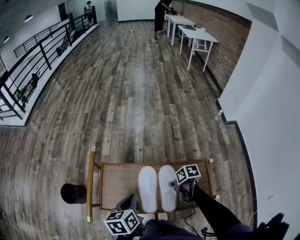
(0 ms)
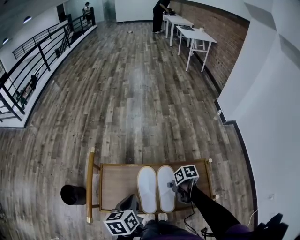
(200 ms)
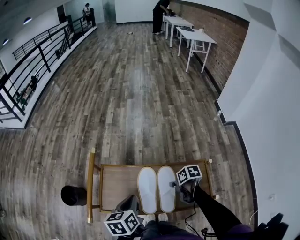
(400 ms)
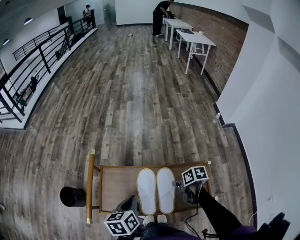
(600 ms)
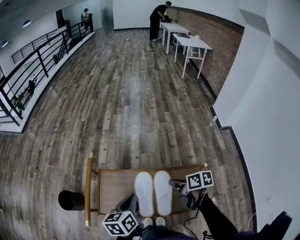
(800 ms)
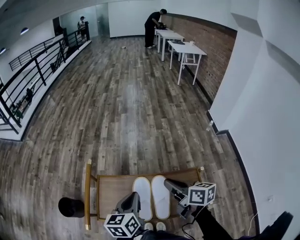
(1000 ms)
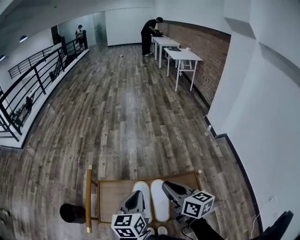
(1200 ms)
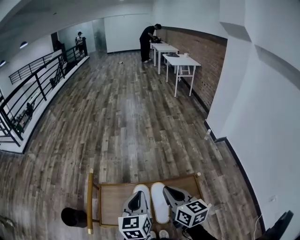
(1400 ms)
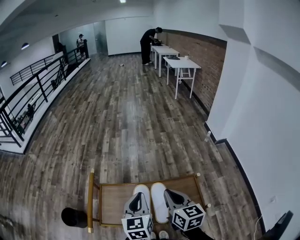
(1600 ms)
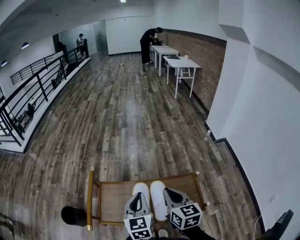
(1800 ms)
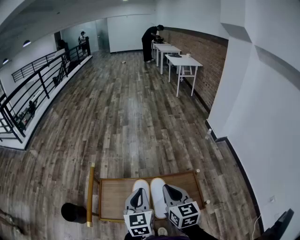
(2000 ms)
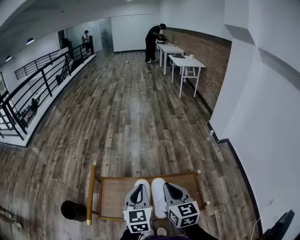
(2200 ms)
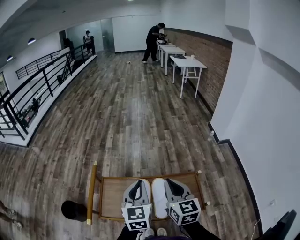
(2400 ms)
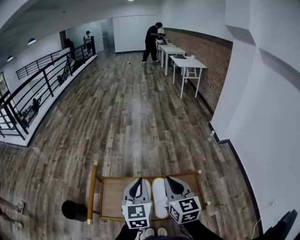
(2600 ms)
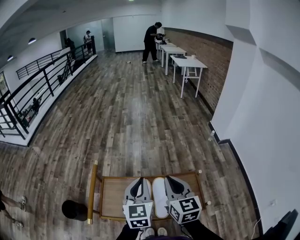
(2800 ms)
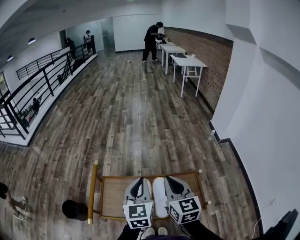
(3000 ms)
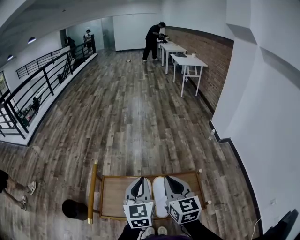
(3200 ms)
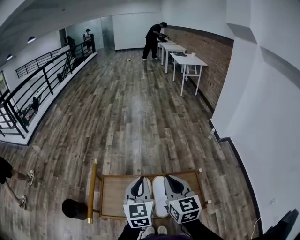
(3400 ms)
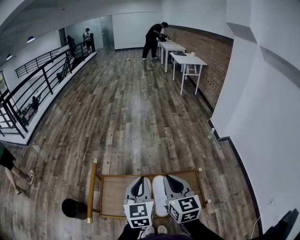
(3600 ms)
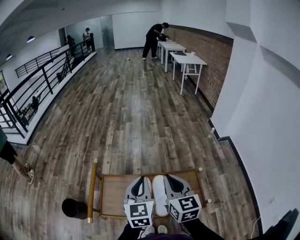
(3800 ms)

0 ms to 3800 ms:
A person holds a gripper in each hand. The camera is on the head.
0 ms to 1200 ms: The right gripper moves upward, approximately 25 cm, and tips its fingers upward by roughly 50 degrees, while the left gripper travels upward and to the right by about 10 cm, and changes its angle by some 30 degrees.
1200 ms to 2600 ms: The left gripper moves upward, approximately 5 cm, and turns by some 20 degrees. Meanwhile the right gripper rotates approximately 30 degrees.
2600 ms to 3800 ms: Both grippers stay about where they are.

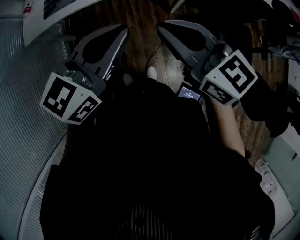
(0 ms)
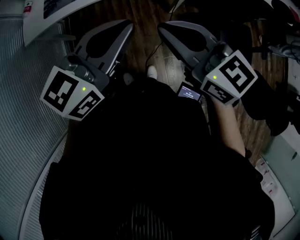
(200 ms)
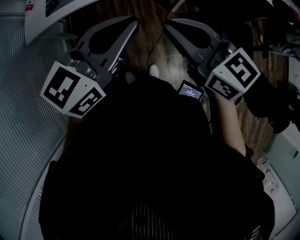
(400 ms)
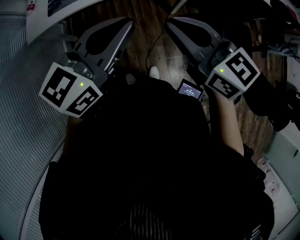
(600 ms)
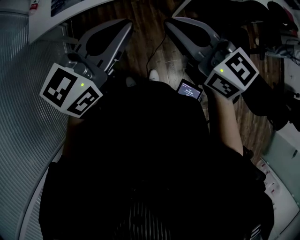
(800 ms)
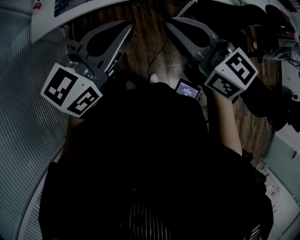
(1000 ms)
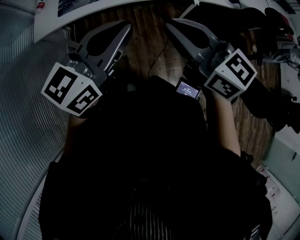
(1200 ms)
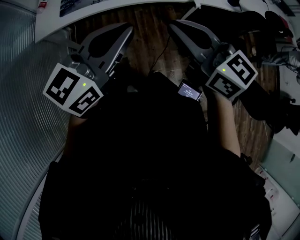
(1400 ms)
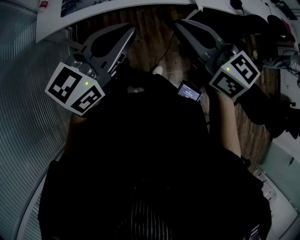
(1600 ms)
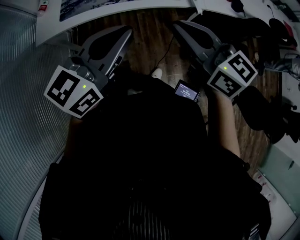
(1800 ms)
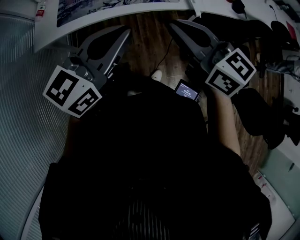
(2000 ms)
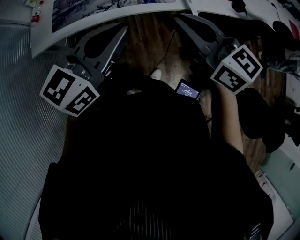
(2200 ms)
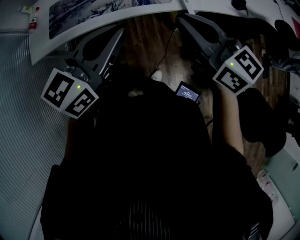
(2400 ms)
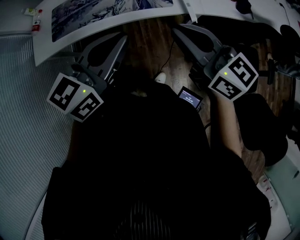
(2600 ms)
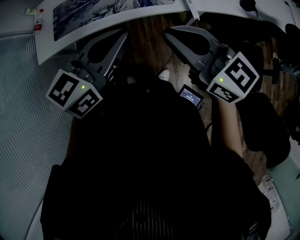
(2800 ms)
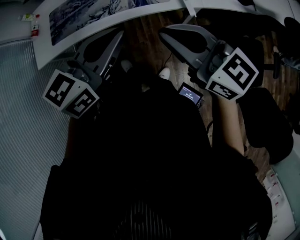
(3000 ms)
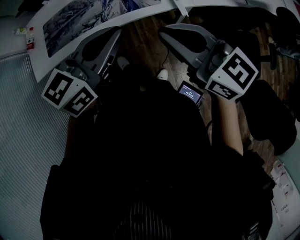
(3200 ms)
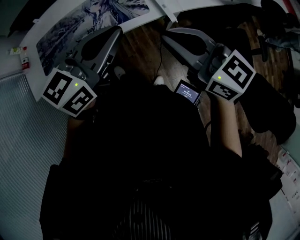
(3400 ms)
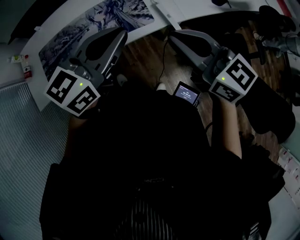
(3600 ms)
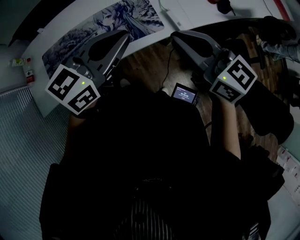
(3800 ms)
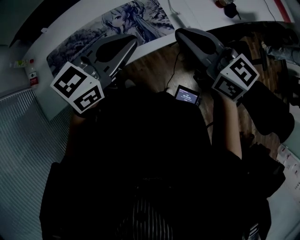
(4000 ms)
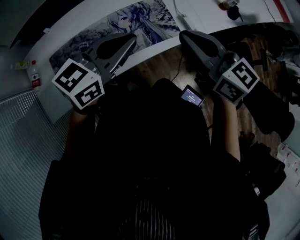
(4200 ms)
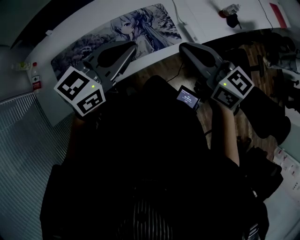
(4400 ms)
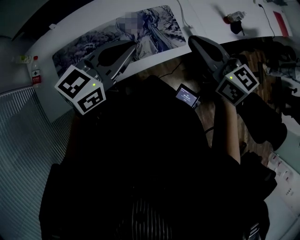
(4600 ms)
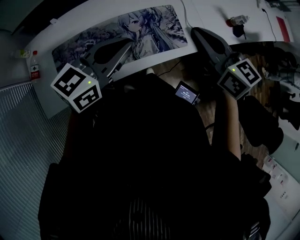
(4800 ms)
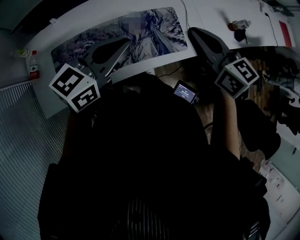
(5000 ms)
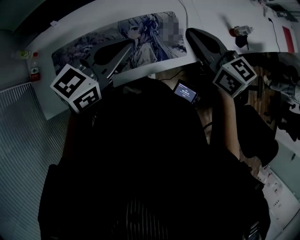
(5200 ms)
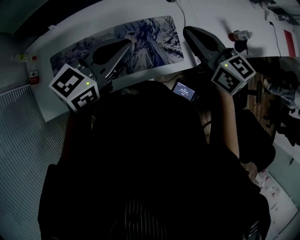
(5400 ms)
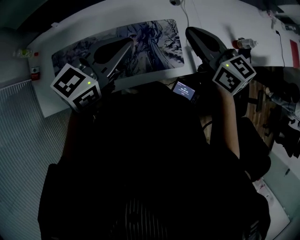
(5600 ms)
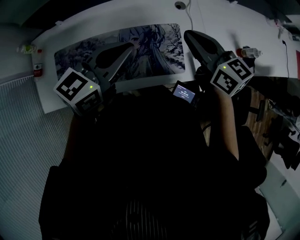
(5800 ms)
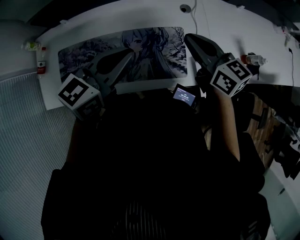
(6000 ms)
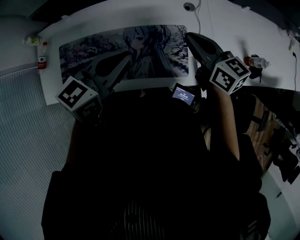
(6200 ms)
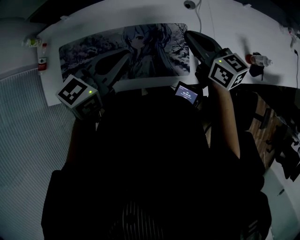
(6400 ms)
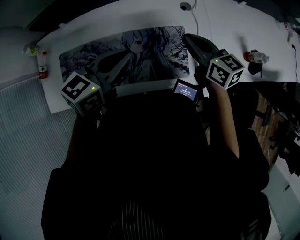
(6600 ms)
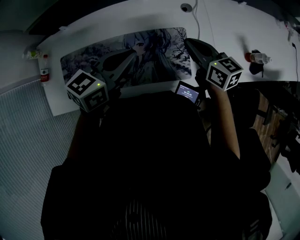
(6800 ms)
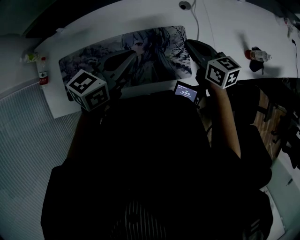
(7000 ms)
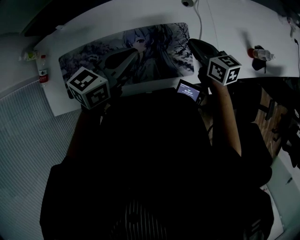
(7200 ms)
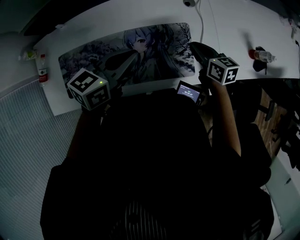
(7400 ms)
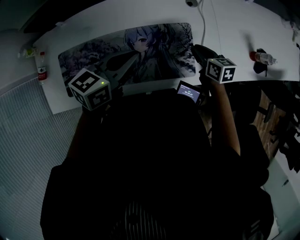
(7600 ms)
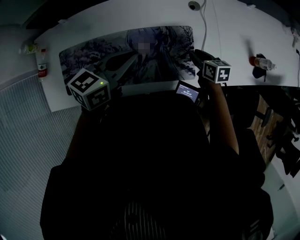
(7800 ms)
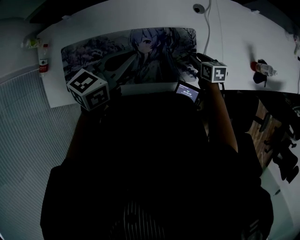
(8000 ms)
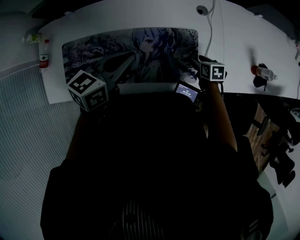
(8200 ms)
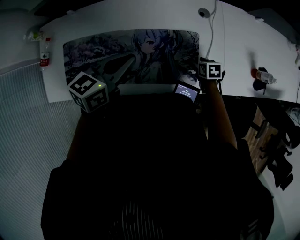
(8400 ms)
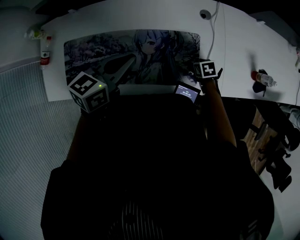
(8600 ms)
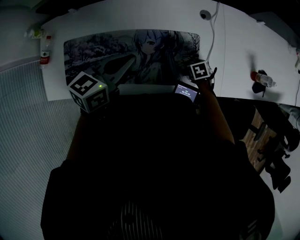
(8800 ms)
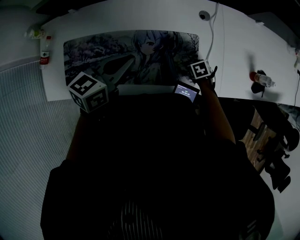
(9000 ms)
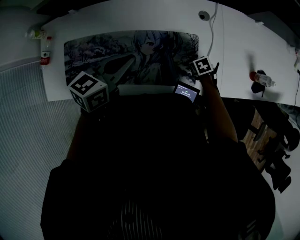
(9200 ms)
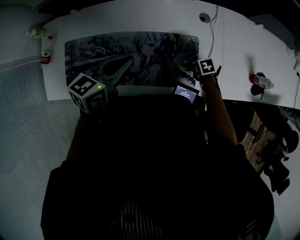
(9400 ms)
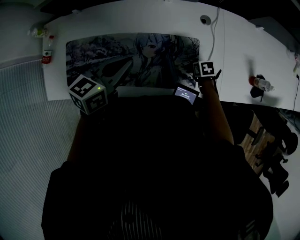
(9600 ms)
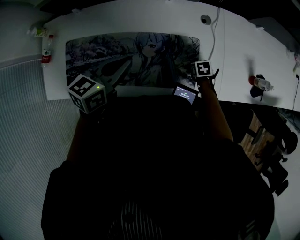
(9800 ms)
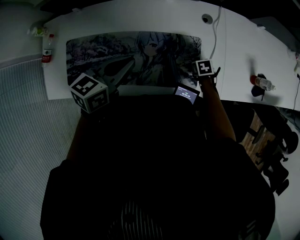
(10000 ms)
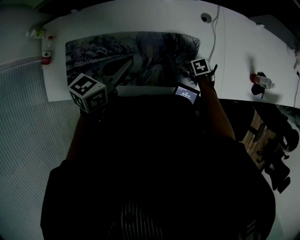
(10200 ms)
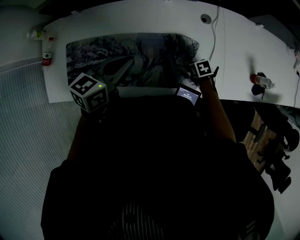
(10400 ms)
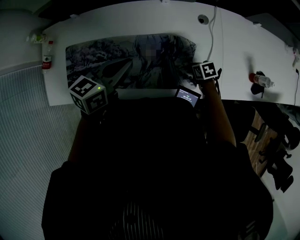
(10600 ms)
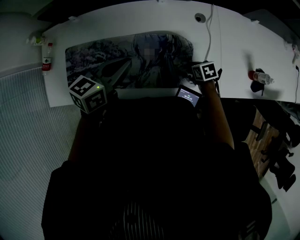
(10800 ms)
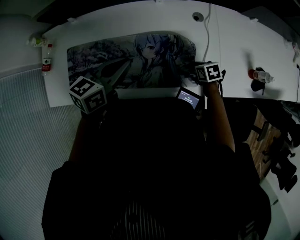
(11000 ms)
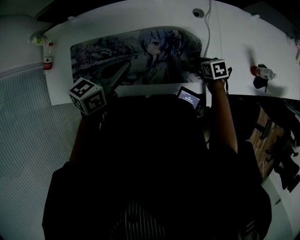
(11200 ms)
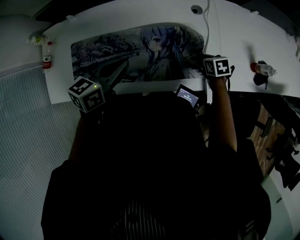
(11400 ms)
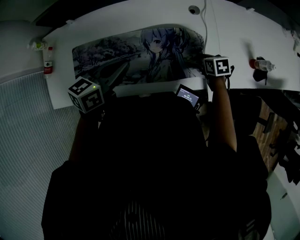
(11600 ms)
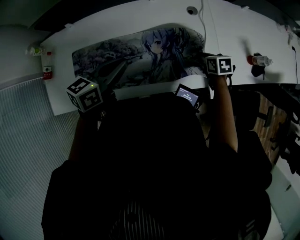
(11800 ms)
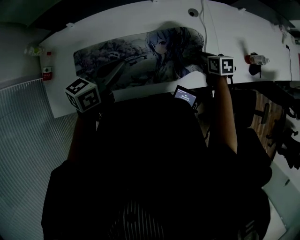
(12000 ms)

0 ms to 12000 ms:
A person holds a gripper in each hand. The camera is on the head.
0 ms to 1600 ms: Both grippers travel together to the left, some 10 cm.
1600 ms to 3000 ms: The right gripper goes roughly 20 cm to the right and forward. Meanwhile the left gripper moves forward and to the right, approximately 25 cm.
3000 ms to 4400 ms: The right gripper heads forward and to the left, covering roughly 20 cm, and rotates approximately 30 degrees. Meanwhile the left gripper travels to the left and forward by roughly 25 cm, and changes its angle by some 20 degrees.
4400 ms to 6000 ms: The left gripper moves forward, some 15 cm, and turns by approximately 20 degrees, while the right gripper goes roughly 25 cm forward.
6000 ms to 7600 ms: The right gripper heads downward, covering about 20 cm, and swivels approximately 30 degrees. The left gripper goes roughly 10 cm downward.
7600 ms to 9000 ms: The right gripper heads downward, covering approximately 15 cm, tilts its fingers roughly 40 degrees downward, and opens its fingers.
9000 ms to 10400 ms: The right gripper closes.
10400 ms to 12000 ms: The left gripper moves to the left, some 5 cm. The right gripper is displaced upward by roughly 15 cm, and turns by approximately 30 degrees.

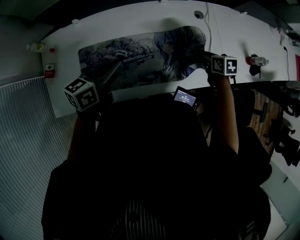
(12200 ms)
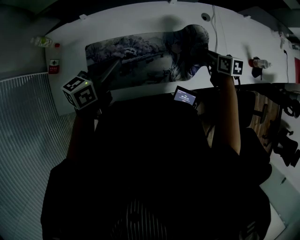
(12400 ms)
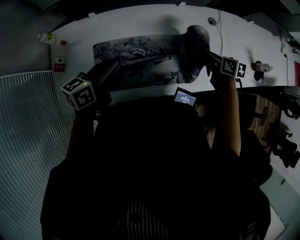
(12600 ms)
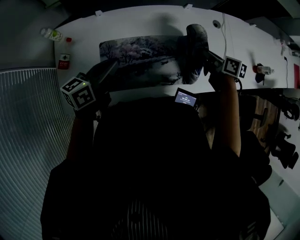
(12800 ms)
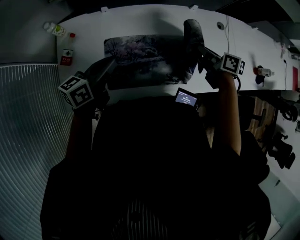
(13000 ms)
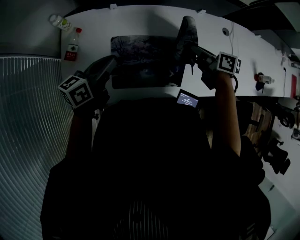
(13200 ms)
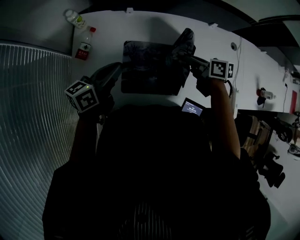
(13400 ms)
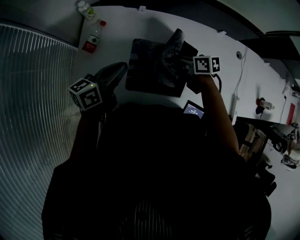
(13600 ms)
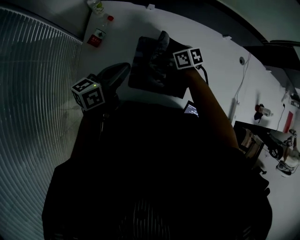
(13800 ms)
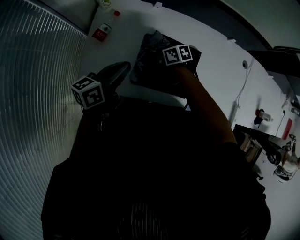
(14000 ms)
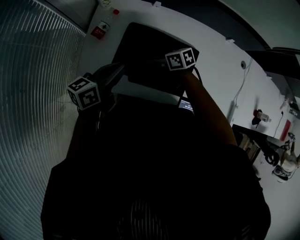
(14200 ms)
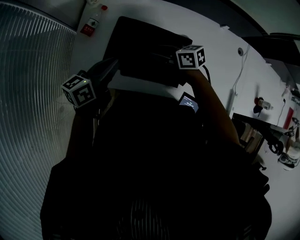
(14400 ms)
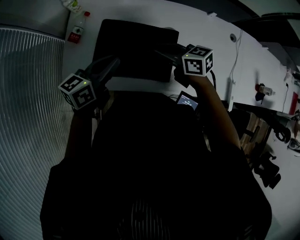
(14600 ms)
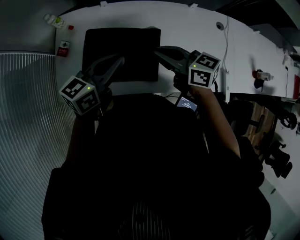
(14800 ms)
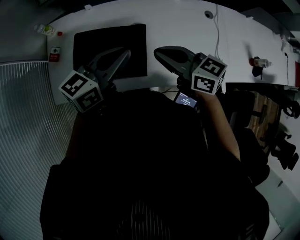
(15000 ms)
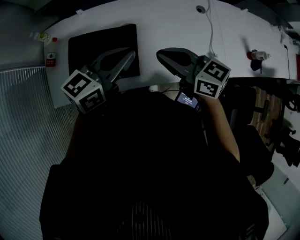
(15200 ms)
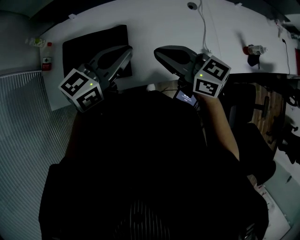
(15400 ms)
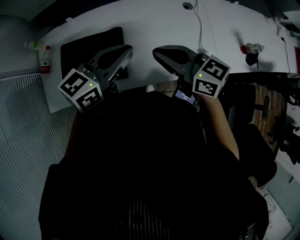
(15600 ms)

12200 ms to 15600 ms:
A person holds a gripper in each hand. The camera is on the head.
12200 ms to 13800 ms: The right gripper moves about 10 cm upward and comes back, and rotates roughly 40 degrees. The left gripper ends up some 30 cm from where it was, and swivels about 20 degrees.
13800 ms to 15600 ms: The right gripper ends up approximately 40 cm from where it was, angles its fingers upward, by roughly 30 degrees, and opens, then closes again. Meanwhile the left gripper shifts by roughly 40 cm, and turns by about 30 degrees.

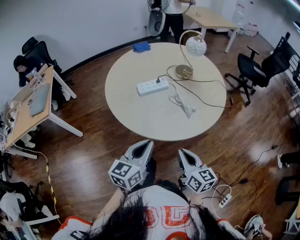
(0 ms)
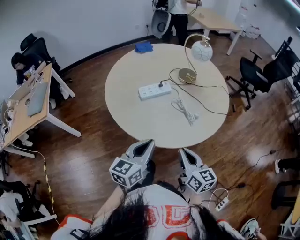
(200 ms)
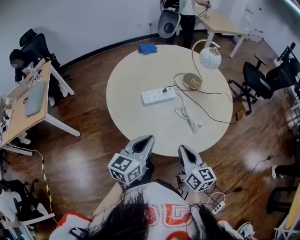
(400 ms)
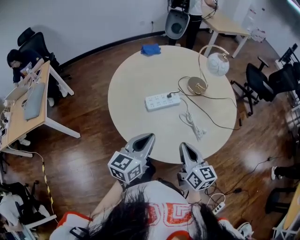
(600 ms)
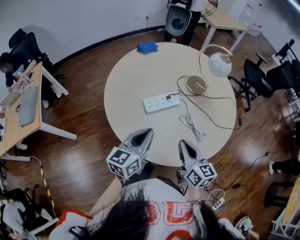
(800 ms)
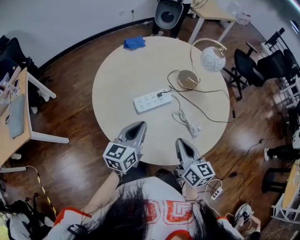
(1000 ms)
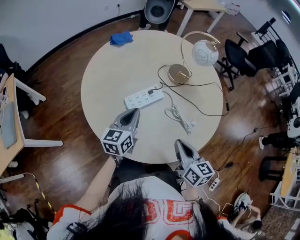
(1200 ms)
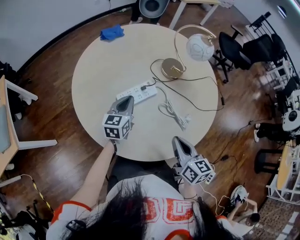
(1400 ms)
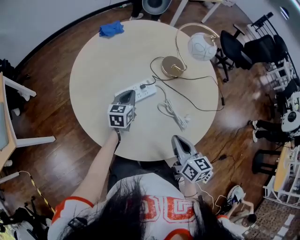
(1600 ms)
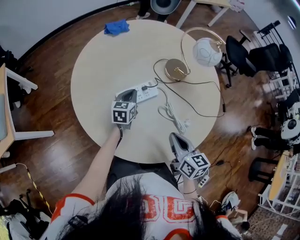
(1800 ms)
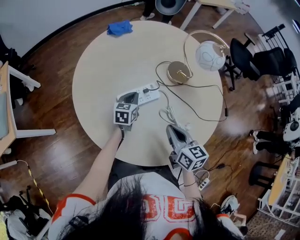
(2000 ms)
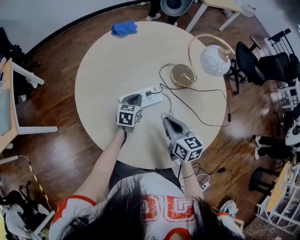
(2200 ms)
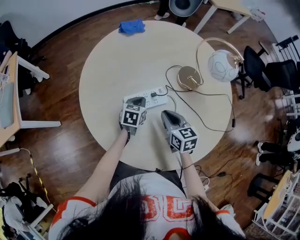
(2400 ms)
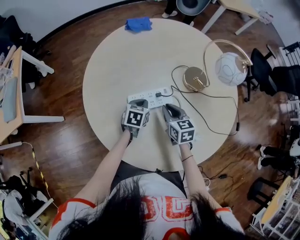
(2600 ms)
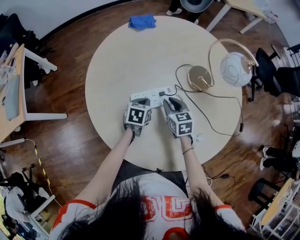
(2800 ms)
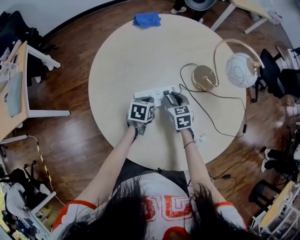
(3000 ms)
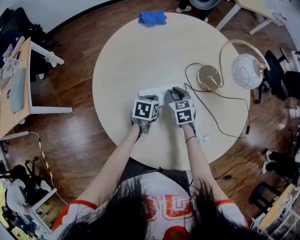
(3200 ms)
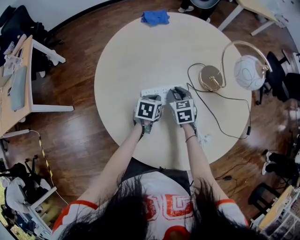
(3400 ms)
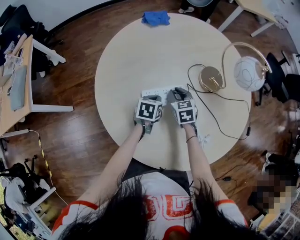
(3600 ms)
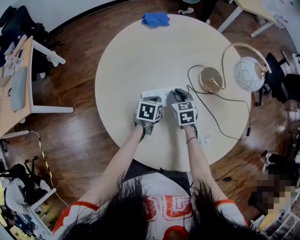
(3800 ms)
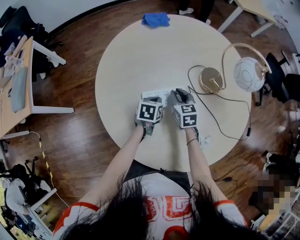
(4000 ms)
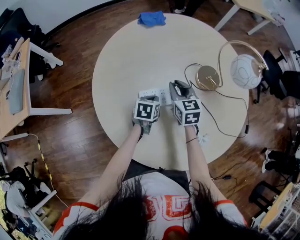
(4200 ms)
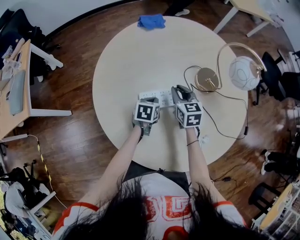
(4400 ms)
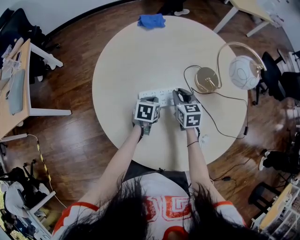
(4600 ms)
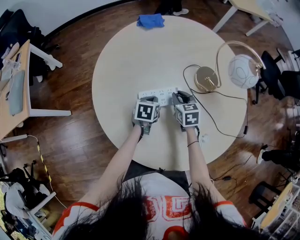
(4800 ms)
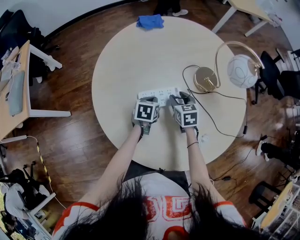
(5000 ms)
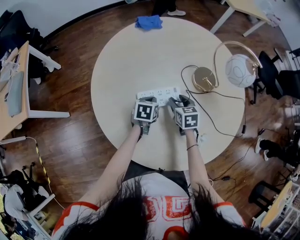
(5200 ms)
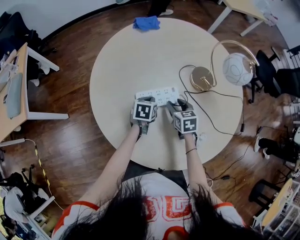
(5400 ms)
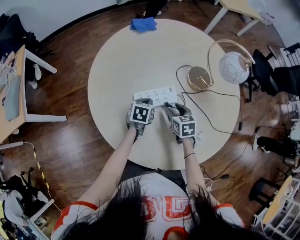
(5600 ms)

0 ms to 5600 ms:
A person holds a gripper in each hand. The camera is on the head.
0 ms to 1400 ms: The right gripper moves forward, some 20 cm, while the left gripper goes some 35 cm forward.
1400 ms to 2800 ms: The right gripper shifts roughly 25 cm forward and downward, turns by about 30 degrees, and opens up; the left gripper goes about 10 cm downward, and angles its fingers downward, by approximately 30 degrees.
2800 ms to 4200 ms: The right gripper travels upward and forward by some 10 cm.
4200 ms to 5600 ms: The right gripper goes about 10 cm backward, downward and to the right, and opens up.
